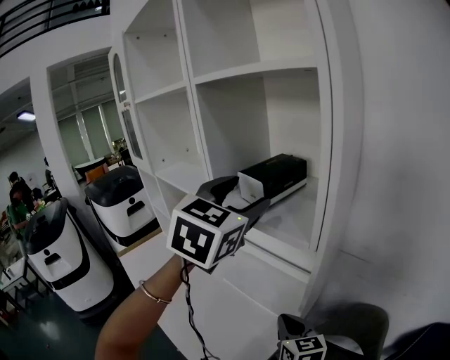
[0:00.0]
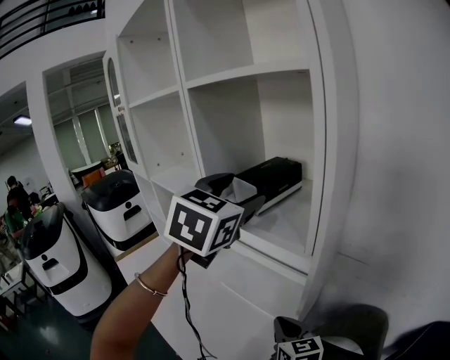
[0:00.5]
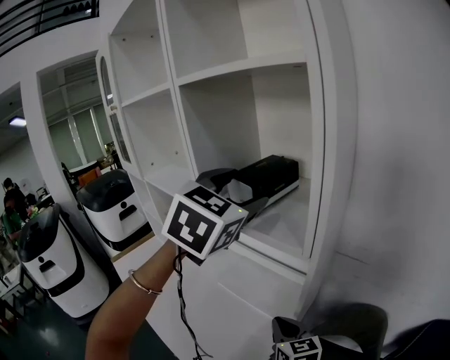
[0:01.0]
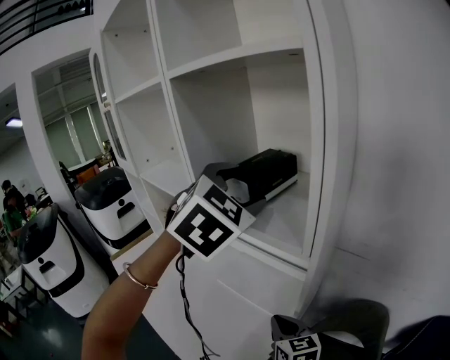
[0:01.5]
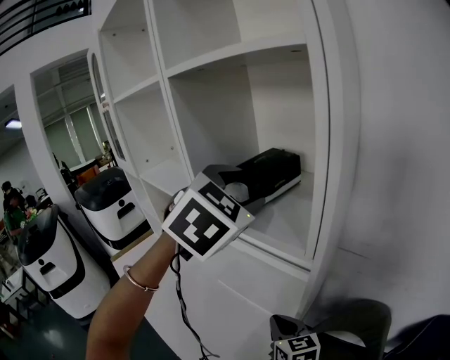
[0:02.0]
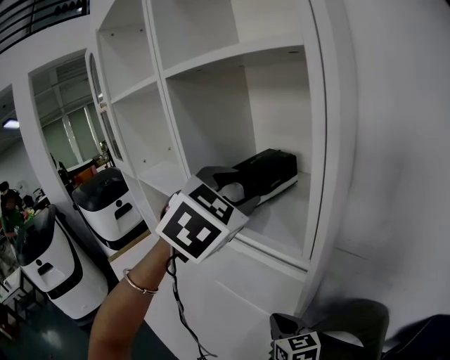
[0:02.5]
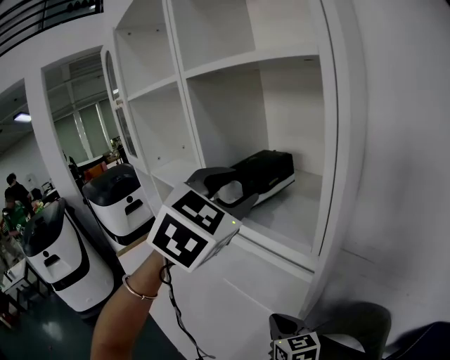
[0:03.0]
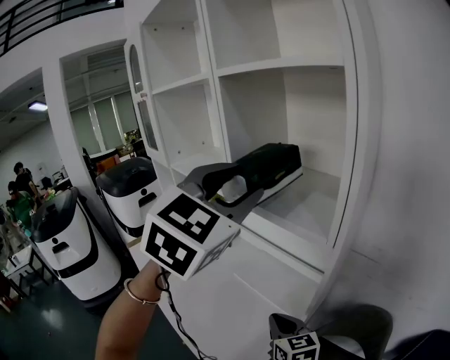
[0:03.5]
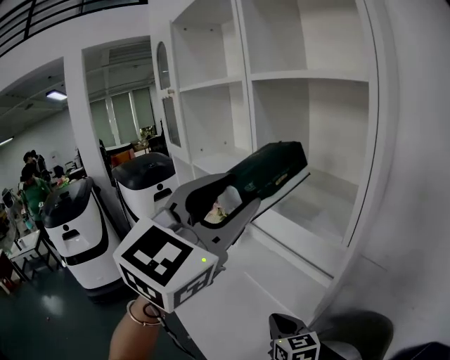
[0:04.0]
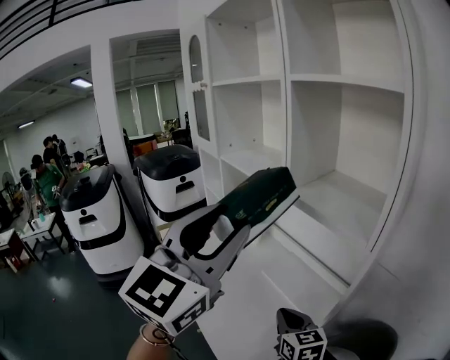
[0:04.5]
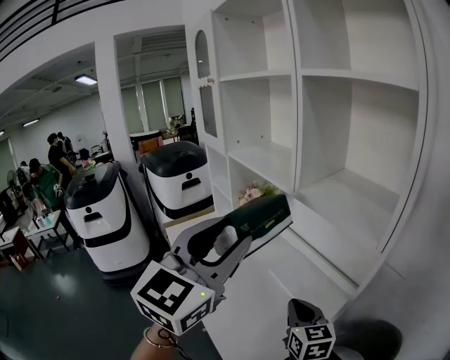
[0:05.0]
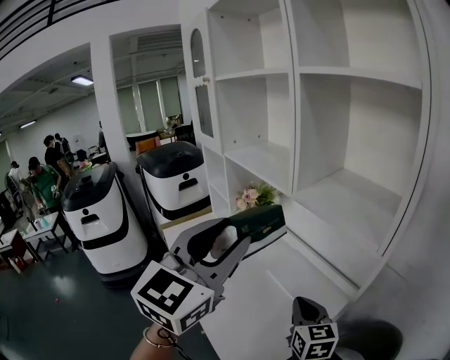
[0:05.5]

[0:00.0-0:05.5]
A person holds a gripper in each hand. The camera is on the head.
0:00.0 to 0:02.0: The left gripper turns by approximately 20 degrees.
0:02.0 to 0:03.5: The left gripper travels backward, to the left and upward by approximately 10 cm, while the right gripper moves approximately 5 cm.
0:03.5 to 0:05.5: The right gripper changes place by roughly 5 cm. Meanwhile the left gripper heads to the left, backward and downward, covering about 20 cm, and turns by approximately 20 degrees.

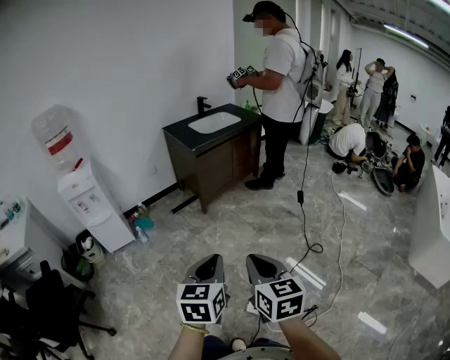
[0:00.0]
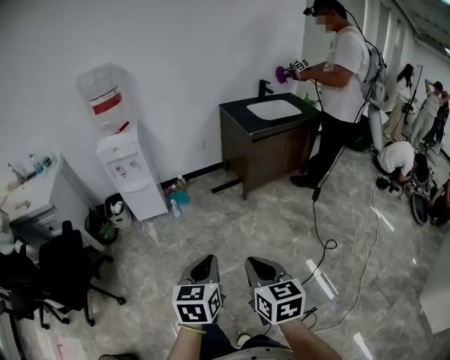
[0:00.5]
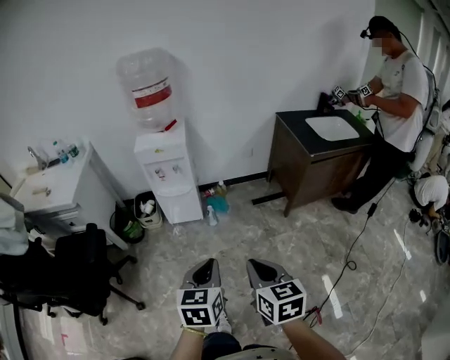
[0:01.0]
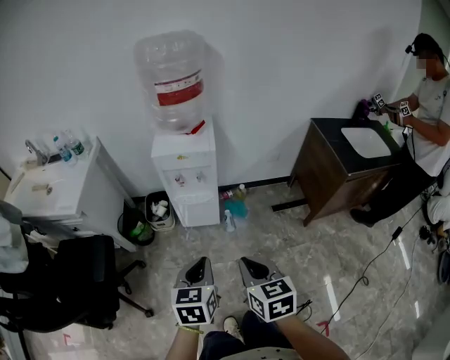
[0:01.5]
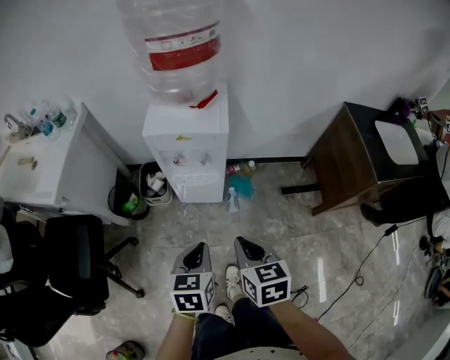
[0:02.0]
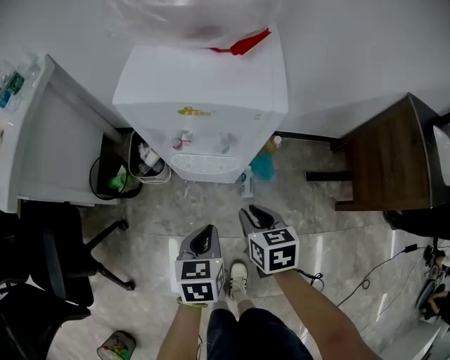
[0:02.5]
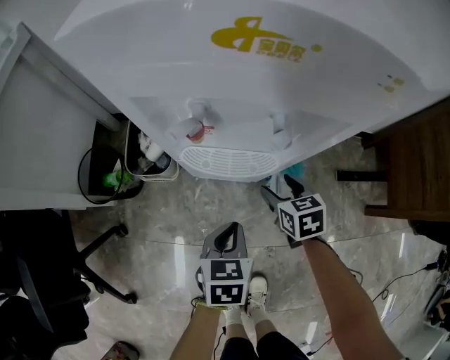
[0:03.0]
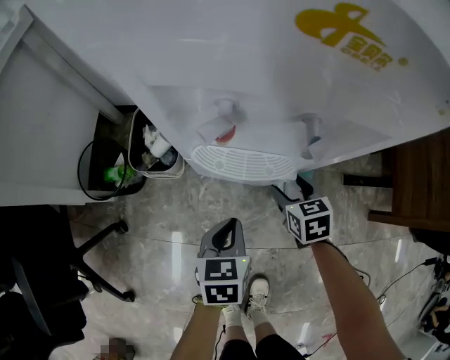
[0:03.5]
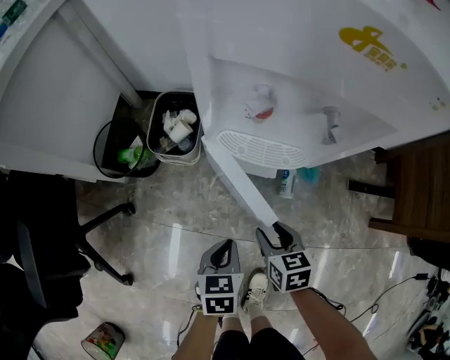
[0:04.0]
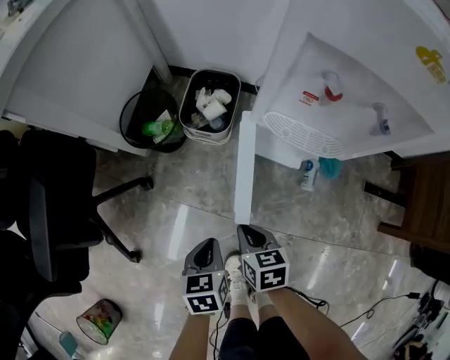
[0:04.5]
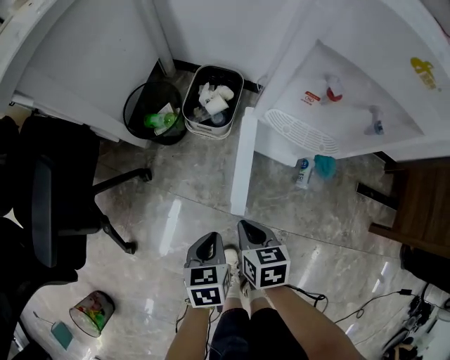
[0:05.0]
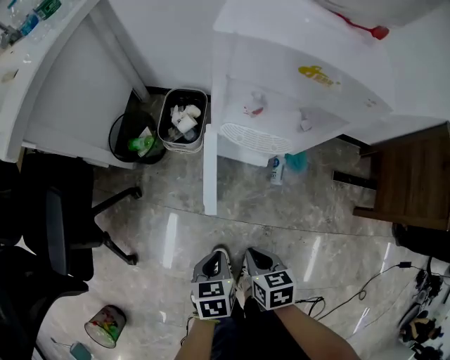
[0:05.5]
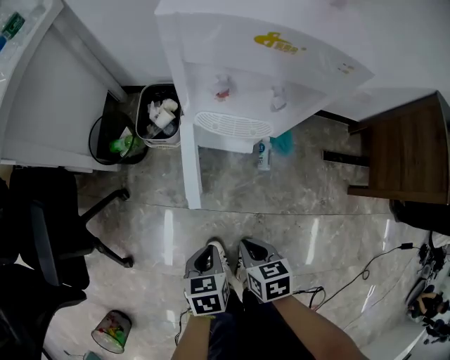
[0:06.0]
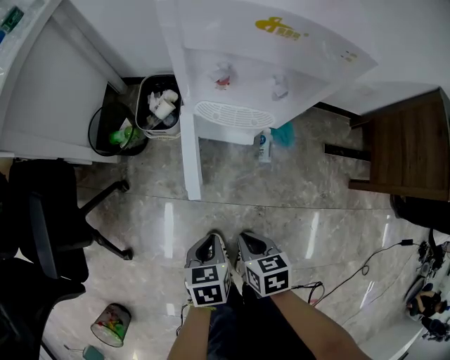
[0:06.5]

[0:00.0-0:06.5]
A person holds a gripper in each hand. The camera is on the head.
0:00.0 to 0:02.0: Both grippers are carried approximately 80 cm. The right gripper changes its angle by approximately 40 degrees; the left gripper changes its angle by some 40 degrees.
0:02.0 to 0:04.5: The grippers both shift downward by roughly 40 cm. The right gripper turns by roughly 30 degrees, and opens and closes again; the left gripper rotates some 30 degrees.
0:04.5 to 0:06.5: The right gripper travels backward, upward and to the right by some 20 cm. Meanwhile the left gripper goes about 15 cm to the right, upward and backward.

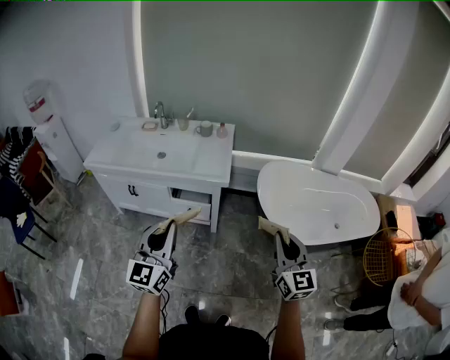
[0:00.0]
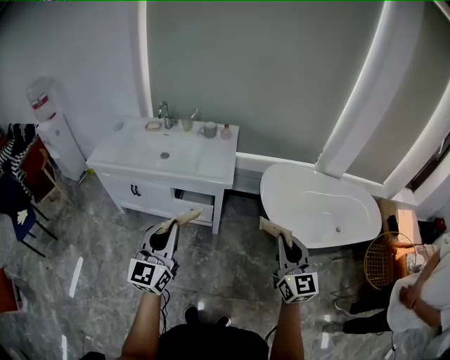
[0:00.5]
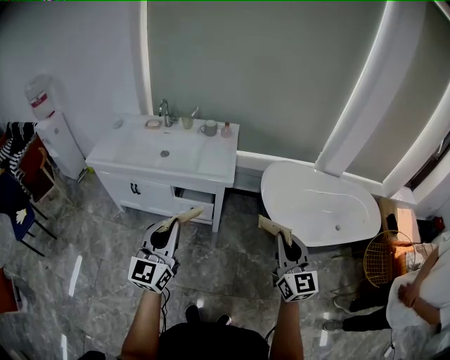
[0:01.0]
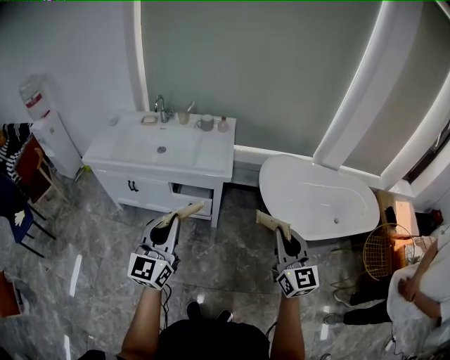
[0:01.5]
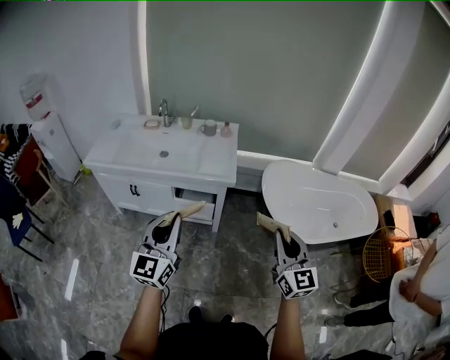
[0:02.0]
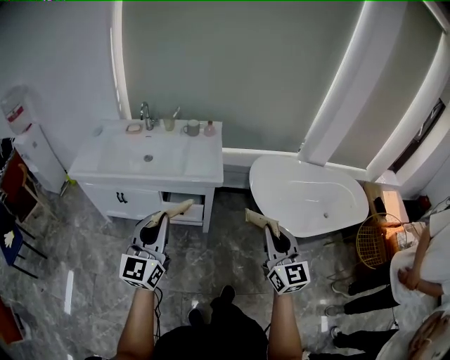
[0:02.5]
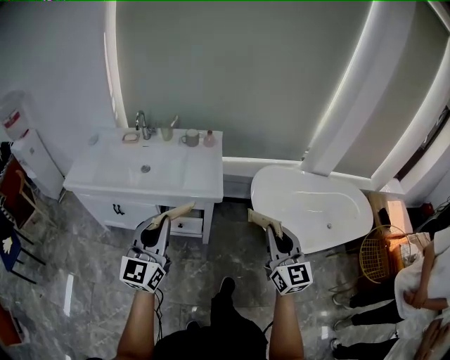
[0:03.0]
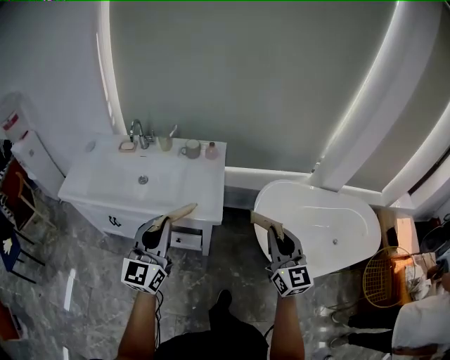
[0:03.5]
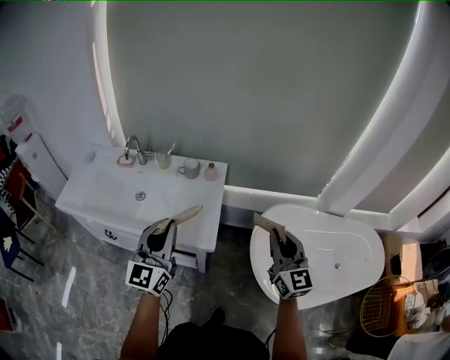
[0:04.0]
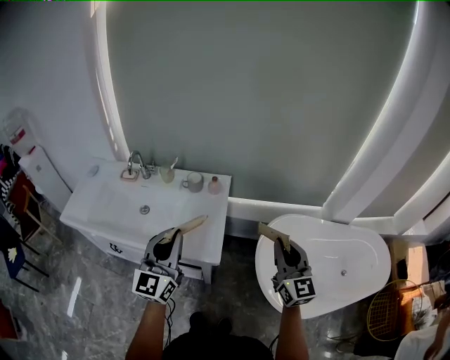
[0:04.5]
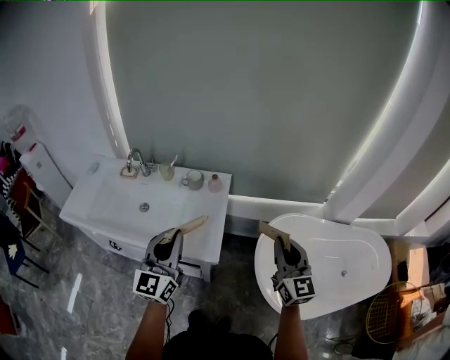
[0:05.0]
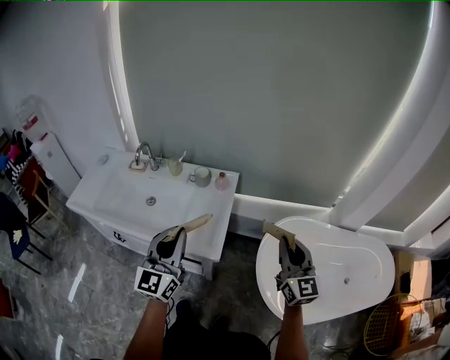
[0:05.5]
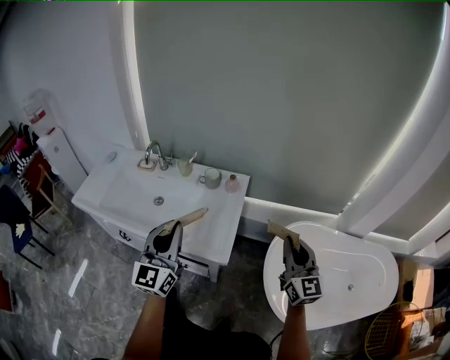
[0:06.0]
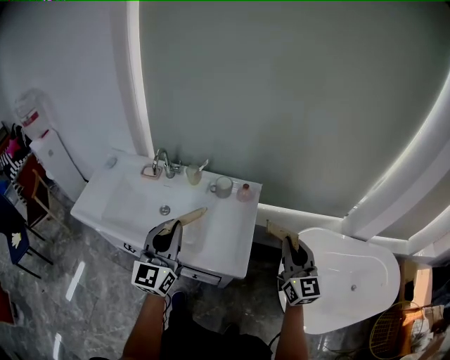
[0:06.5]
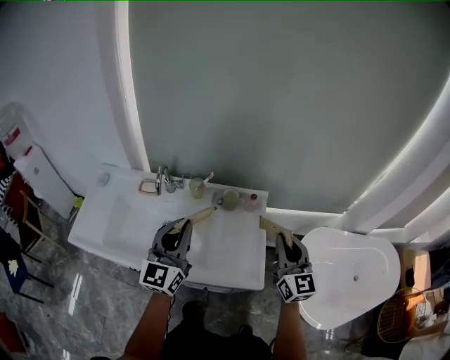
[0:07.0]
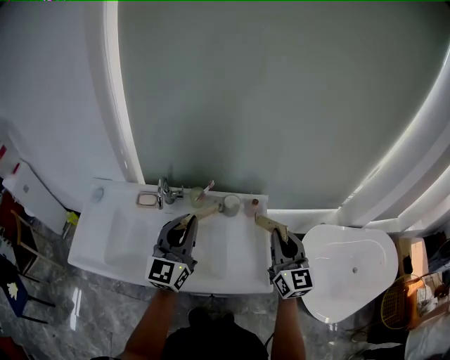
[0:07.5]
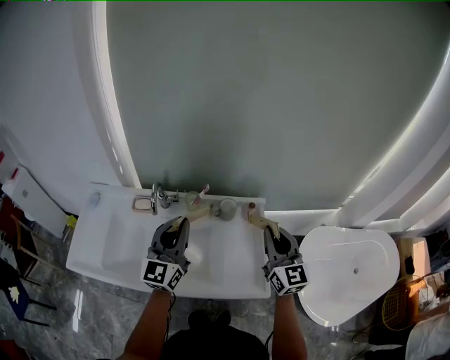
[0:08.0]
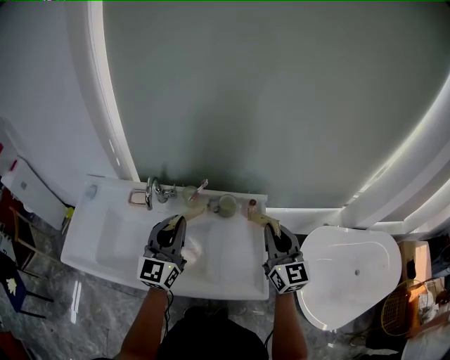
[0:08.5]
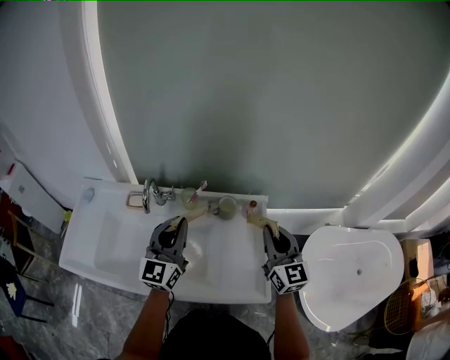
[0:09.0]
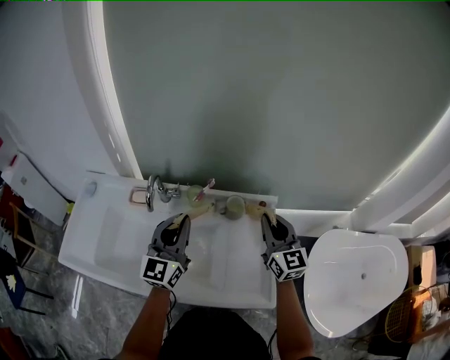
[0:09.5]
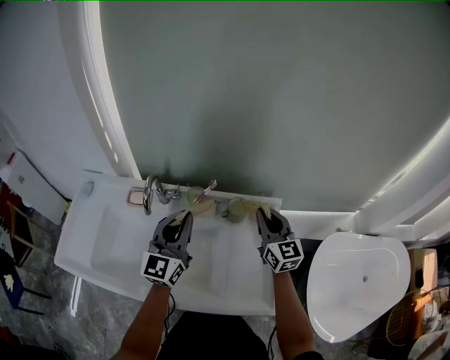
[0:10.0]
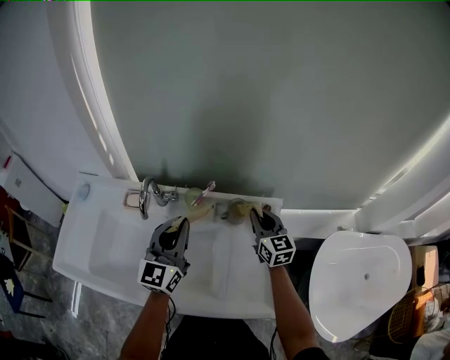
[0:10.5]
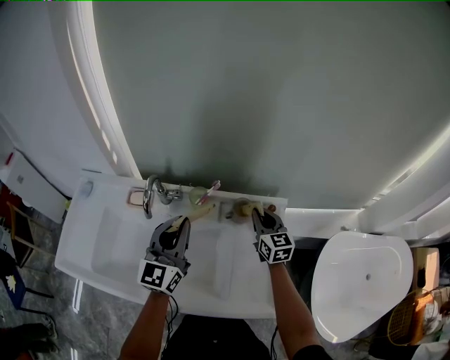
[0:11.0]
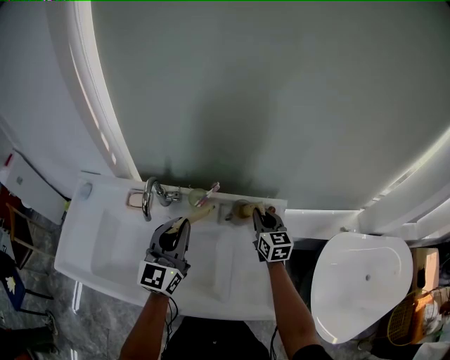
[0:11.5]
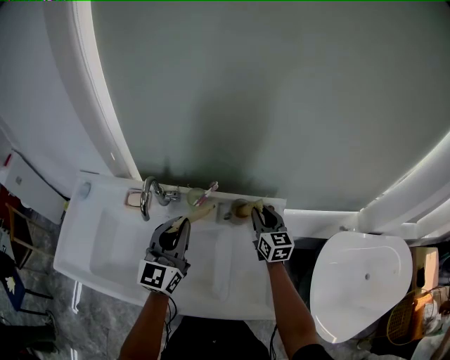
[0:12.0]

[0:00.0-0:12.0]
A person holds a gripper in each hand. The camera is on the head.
0:00.0 to 0:02.0: Both grippers travel together to the left, approximately 5 cm.
0:02.0 to 0:04.0: The grippers both shift forward by roughly 40 cm.
0:04.0 to 0:06.0: The right gripper shifts roughly 5 cm forward.
0:06.0 to 0:08.0: The right gripper travels to the left and forward by some 35 cm, while the left gripper moves forward and to the left, some 35 cm.
0:08.0 to 0:10.0: The left gripper shifts about 15 cm downward and forward. Meanwhile the right gripper goes approximately 20 cm forward and downward.
0:10.0 to 0:12.0: The right gripper heads downward and forward, covering some 10 cm.

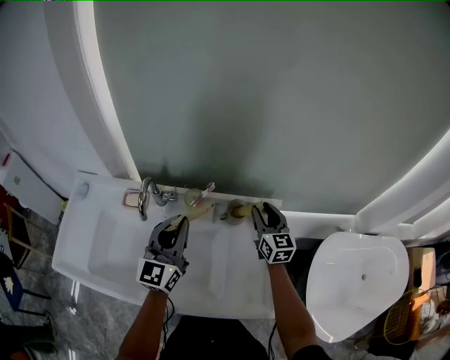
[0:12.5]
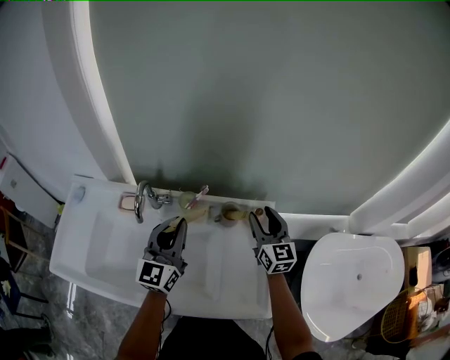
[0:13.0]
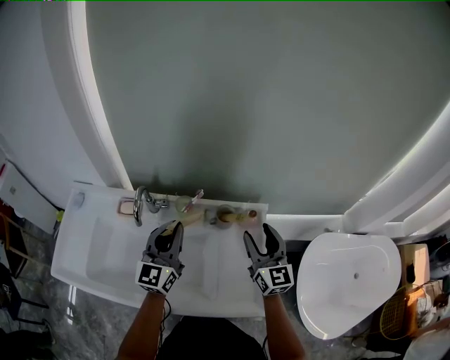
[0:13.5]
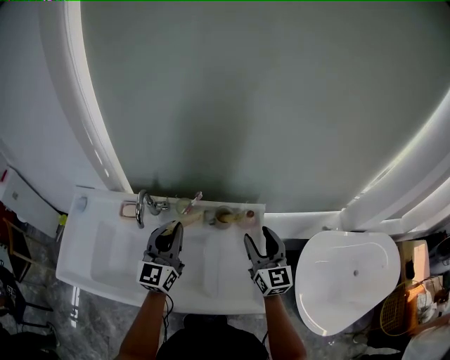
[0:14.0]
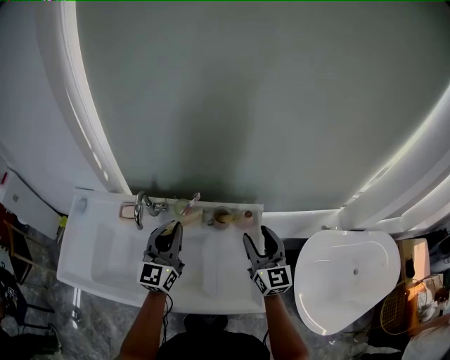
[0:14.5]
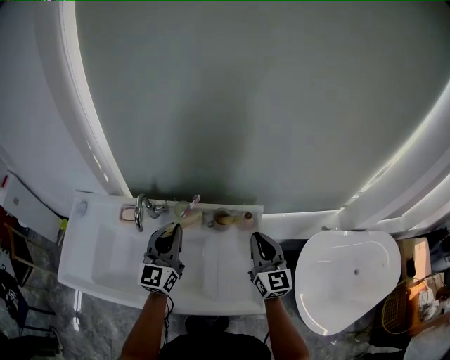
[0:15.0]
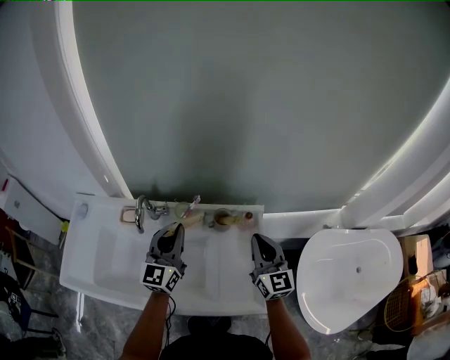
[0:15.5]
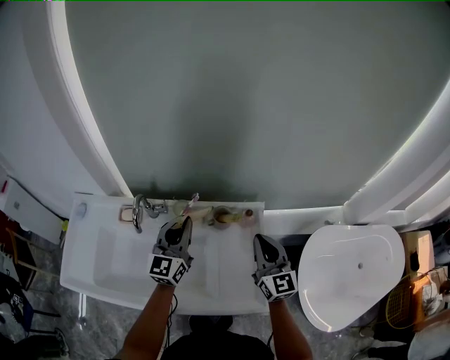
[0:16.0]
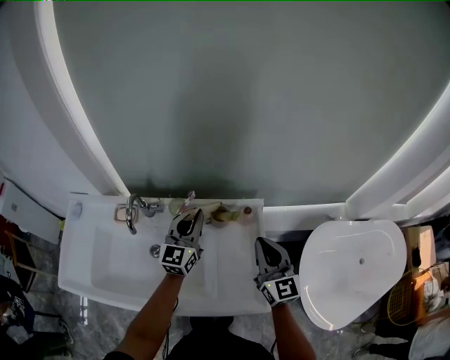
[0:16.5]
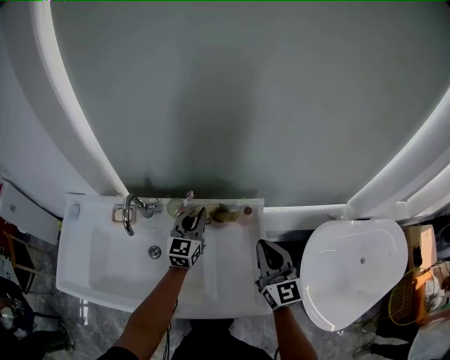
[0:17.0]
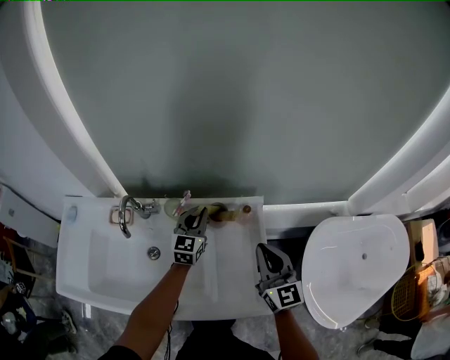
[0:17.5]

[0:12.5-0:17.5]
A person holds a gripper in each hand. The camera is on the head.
0:12.5 to 0:15.0: The right gripper travels backward and upward by roughly 15 cm, and closes up.
0:15.0 to 0:17.5: The left gripper goes approximately 25 cm downward, forward and to the right.
